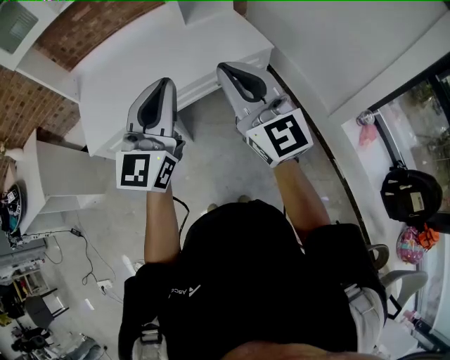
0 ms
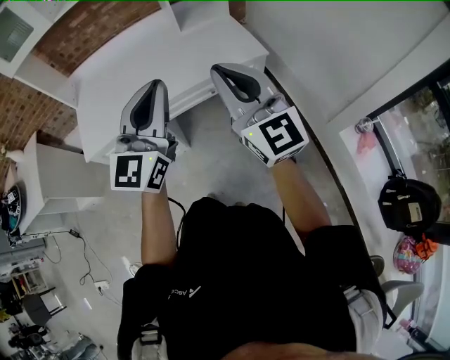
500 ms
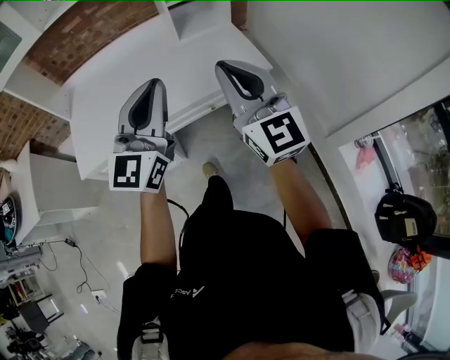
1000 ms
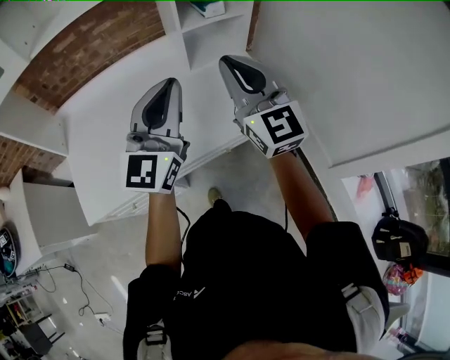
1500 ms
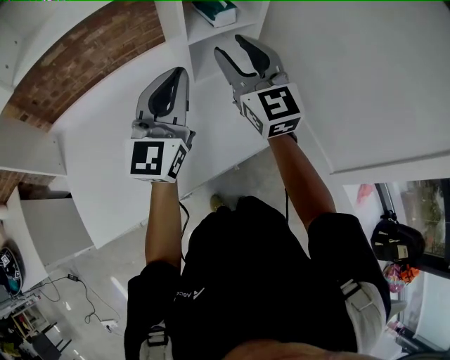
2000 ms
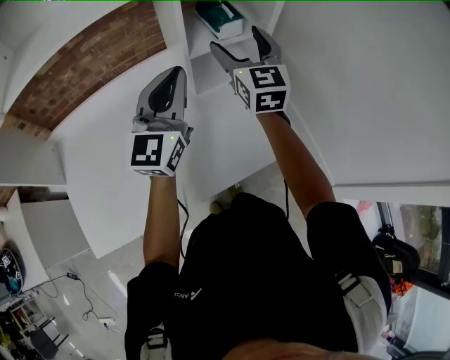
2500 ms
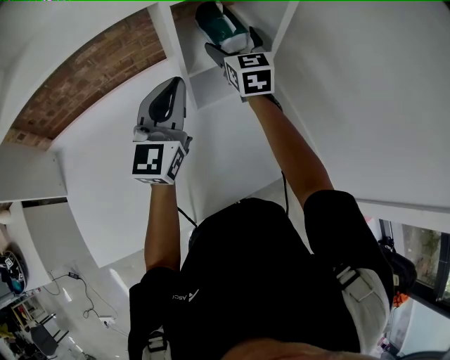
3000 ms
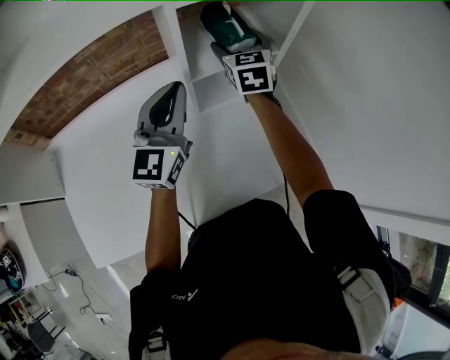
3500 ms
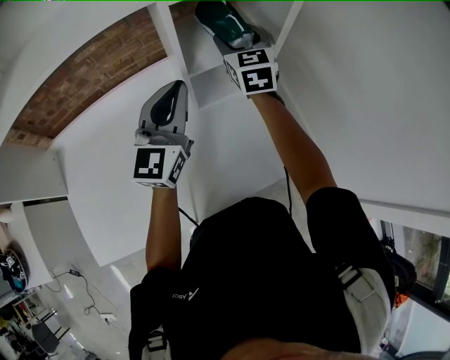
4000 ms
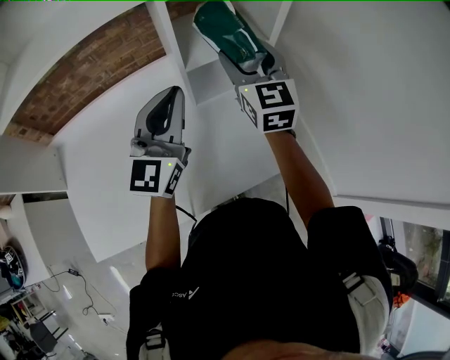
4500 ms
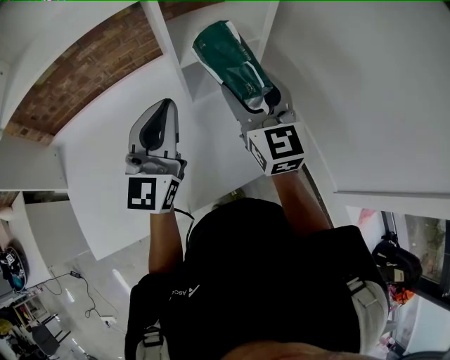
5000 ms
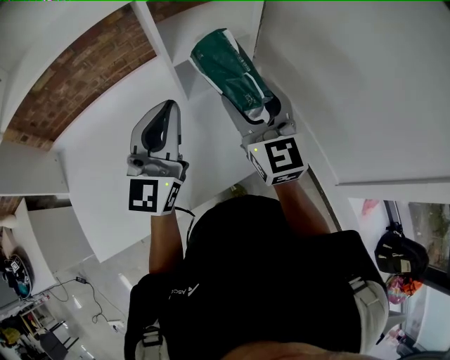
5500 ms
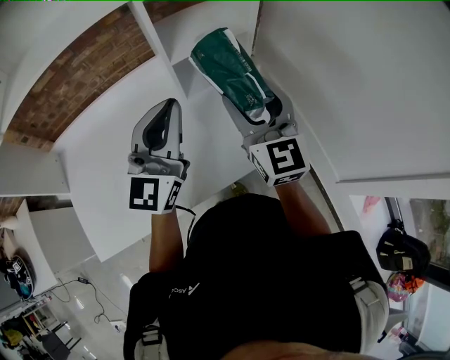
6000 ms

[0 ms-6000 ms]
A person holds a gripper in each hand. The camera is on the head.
0 ms to 2000 ms: The pair of grippers is taken forward, roughly 50 cm. The right gripper opens.
2000 ms to 4000 ms: The left gripper shifts about 15 cm forward. Meanwhile the right gripper is displaced forward by roughly 30 cm, and opens, then closes once more.
4000 ms to 6000 ms: The left gripper goes some 15 cm backward. The right gripper heads backward, covering roughly 30 cm.

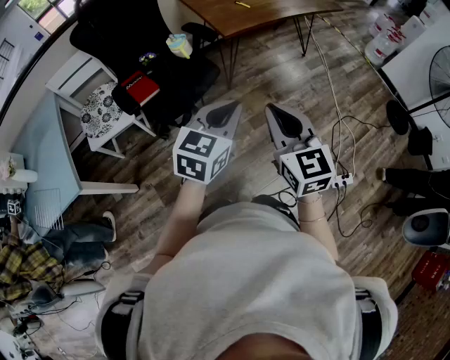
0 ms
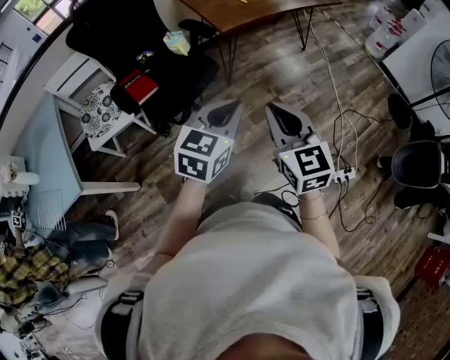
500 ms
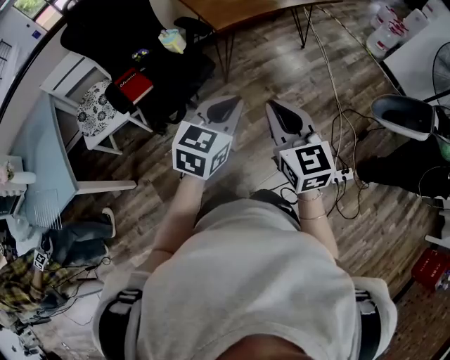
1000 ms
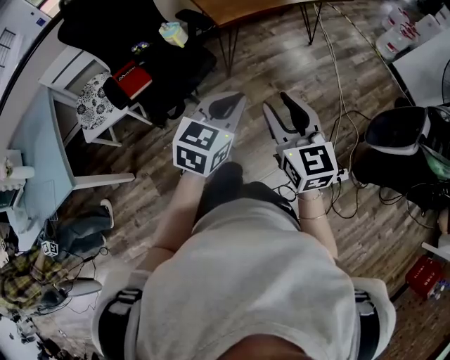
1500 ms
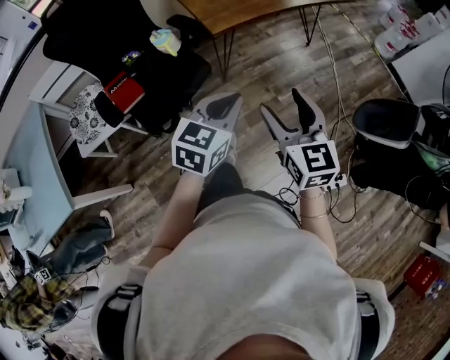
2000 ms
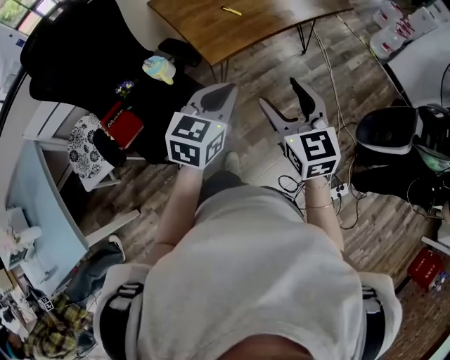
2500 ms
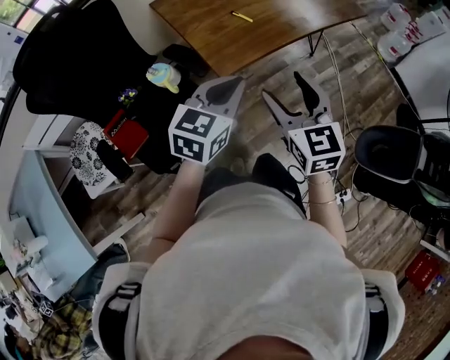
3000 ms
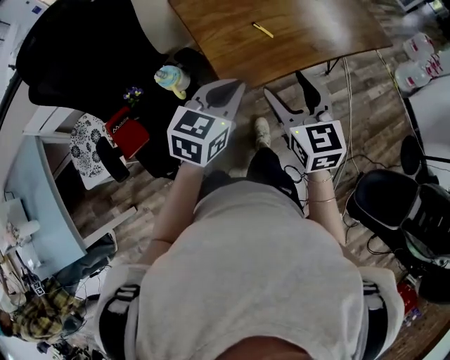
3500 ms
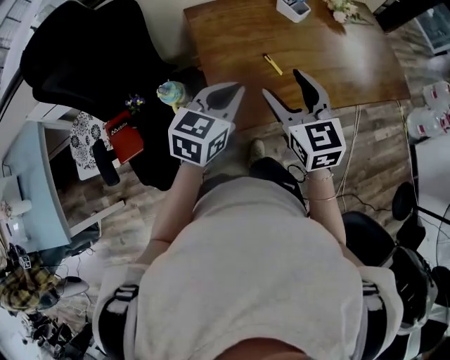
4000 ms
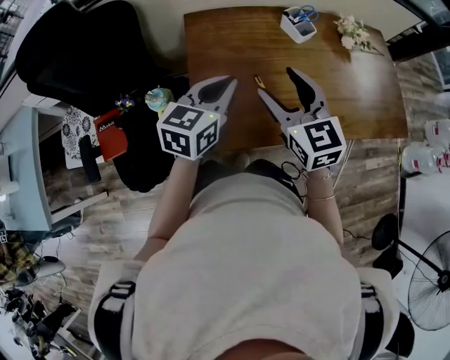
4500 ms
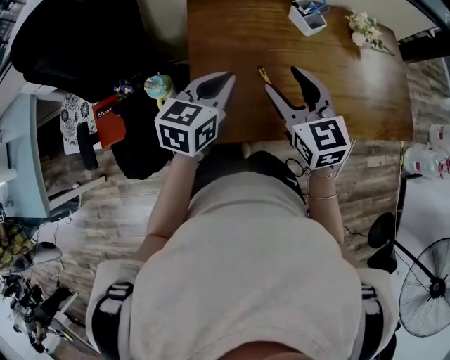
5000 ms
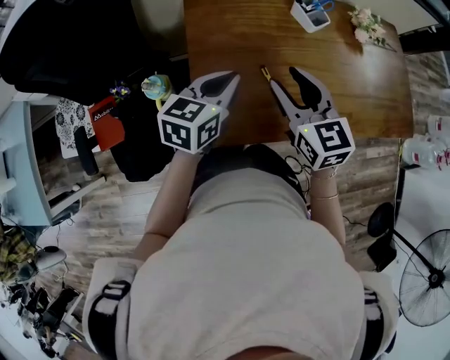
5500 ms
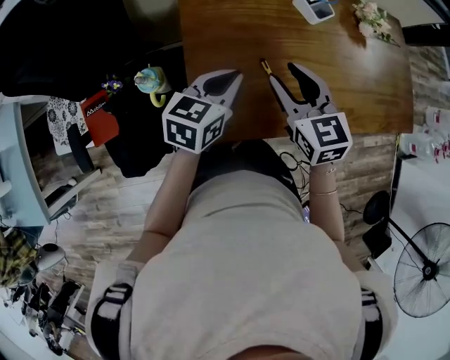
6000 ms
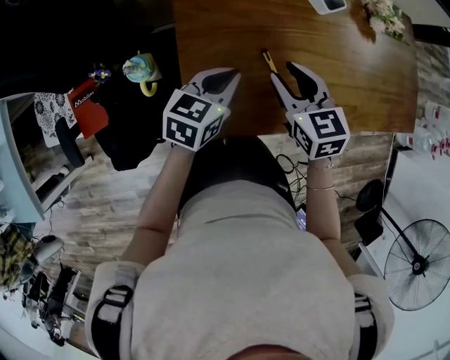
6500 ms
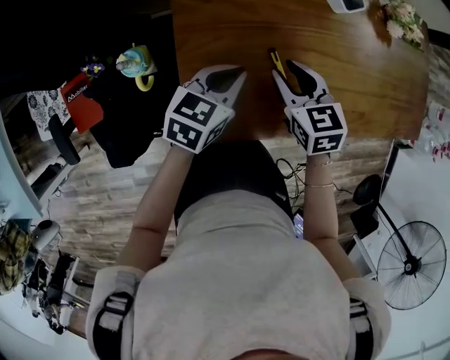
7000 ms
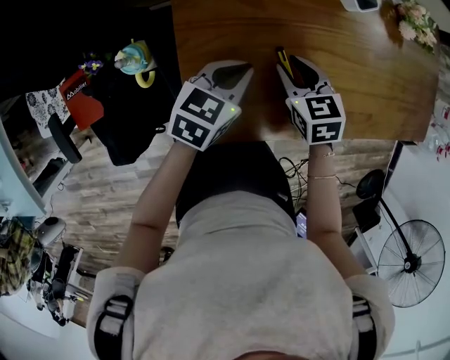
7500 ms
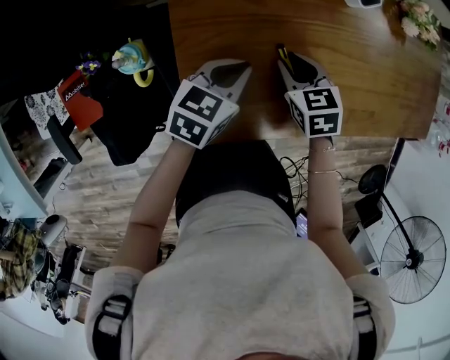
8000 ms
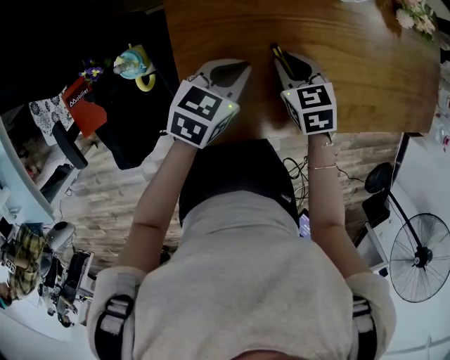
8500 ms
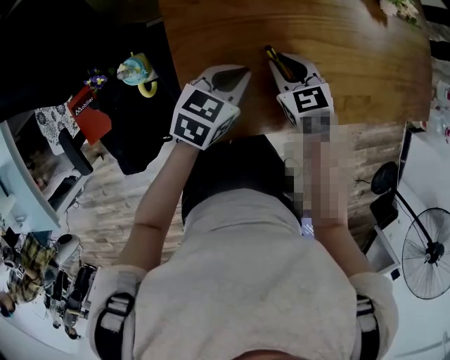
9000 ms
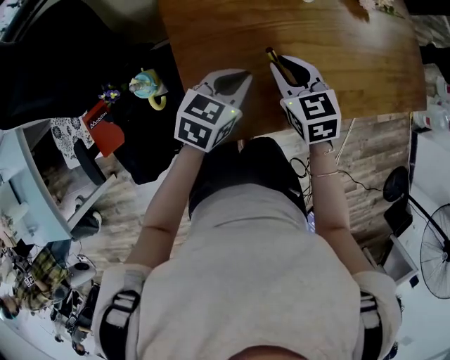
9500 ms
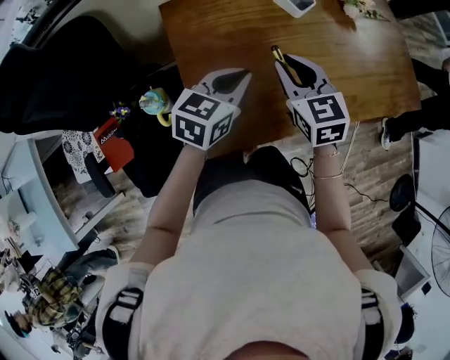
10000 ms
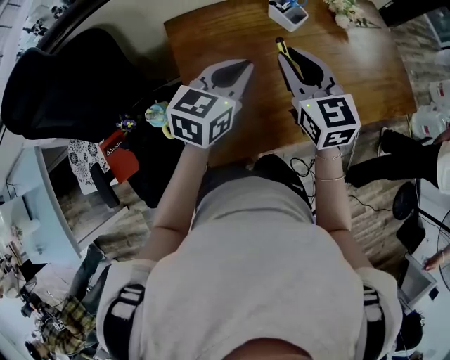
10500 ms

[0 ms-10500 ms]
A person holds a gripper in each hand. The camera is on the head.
0 ms to 2000 ms: Both grippers move forward, about 15 cm. The right gripper opens its fingers.
2000 ms to 4000 ms: The two grippers travel together, forward, roughly 50 cm.
4000 ms to 6500 ms: The grippers both shift forward and downward by some 20 cm. The right gripper changes its angle by roughly 20 degrees, and closes its fingers.
6500 ms to 8500 ms: The right gripper goes roughly 15 cm downward. The left gripper goes roughly 5 cm downward.
8500 ms to 10500 ms: Both grippers move upward, roughly 25 cm. The left gripper swivels approximately 20 degrees; the right gripper tips its fingers upward by about 40 degrees.

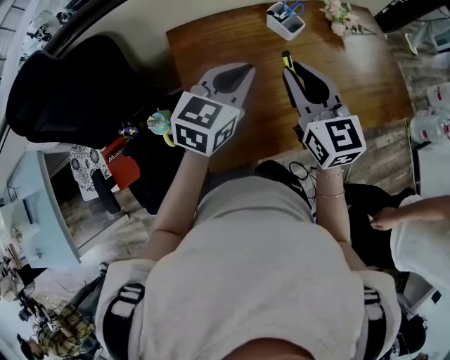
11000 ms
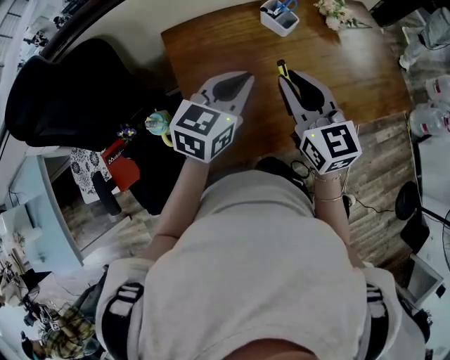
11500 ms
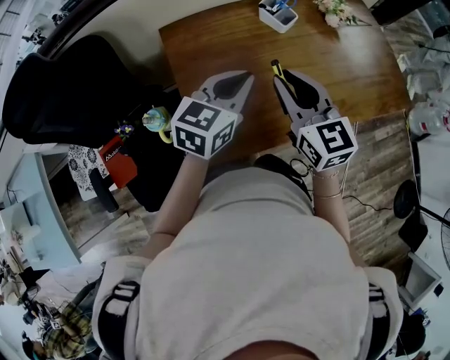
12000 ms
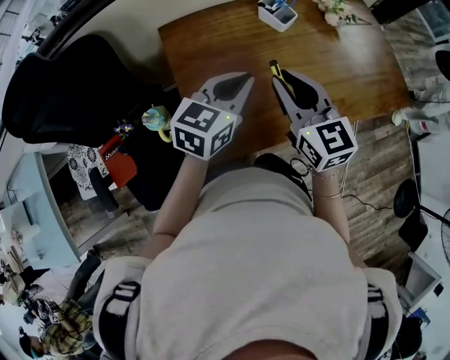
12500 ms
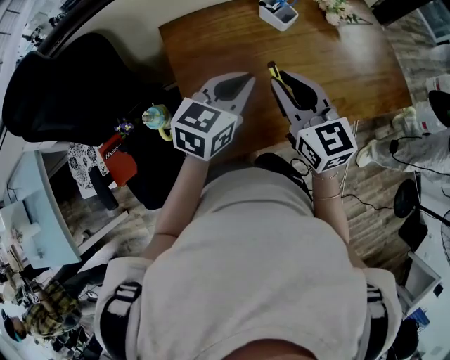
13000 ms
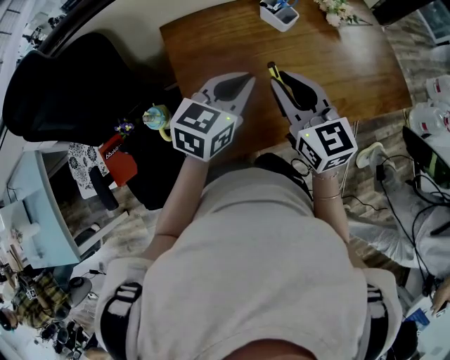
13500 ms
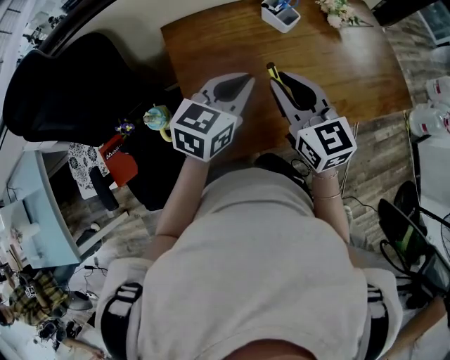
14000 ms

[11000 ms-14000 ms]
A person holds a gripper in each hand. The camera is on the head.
11000 ms to 12500 ms: The grippers stay close to where they were, moving slightly.
12500 ms to 14000 ms: Both grippers stay about where they are.

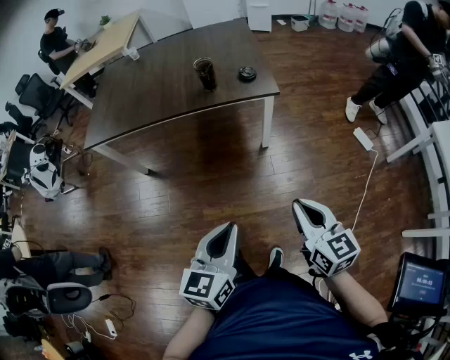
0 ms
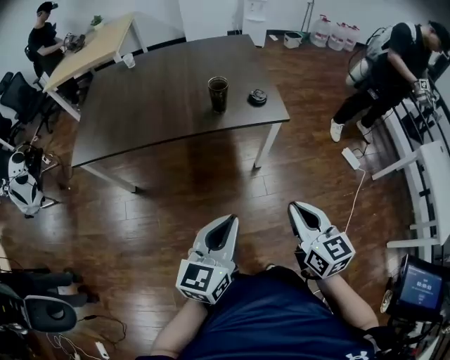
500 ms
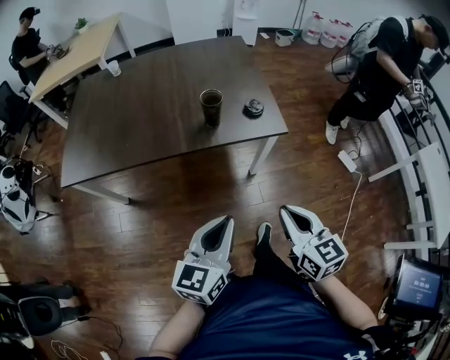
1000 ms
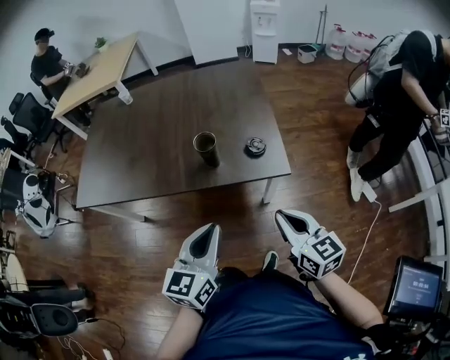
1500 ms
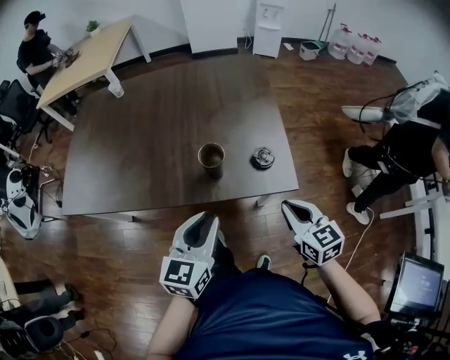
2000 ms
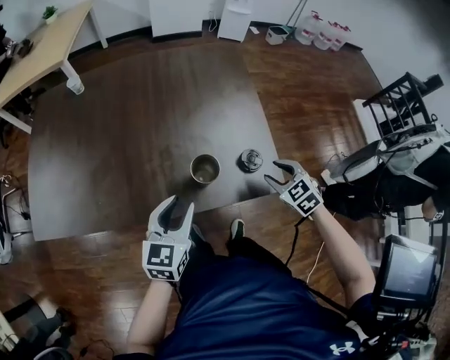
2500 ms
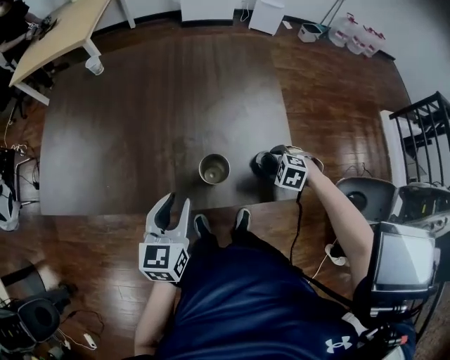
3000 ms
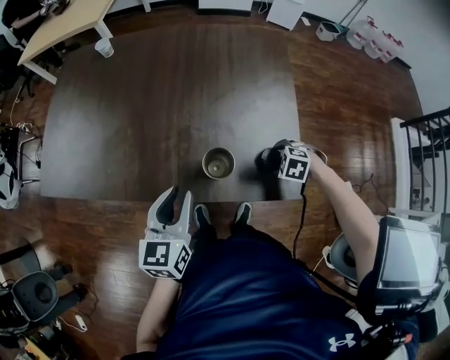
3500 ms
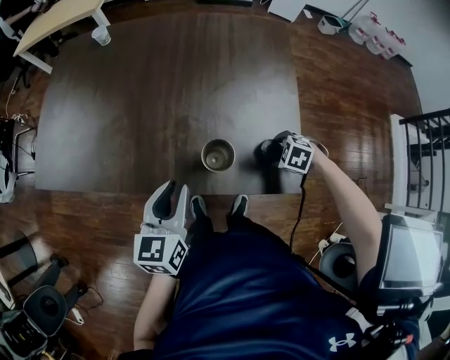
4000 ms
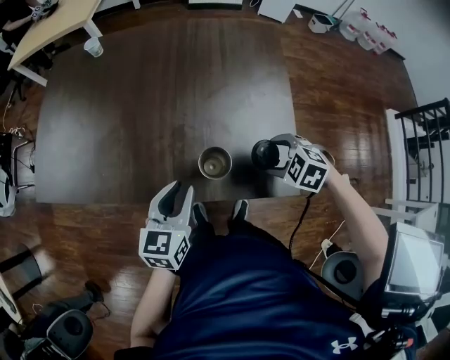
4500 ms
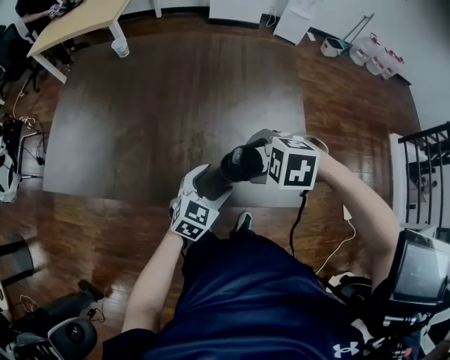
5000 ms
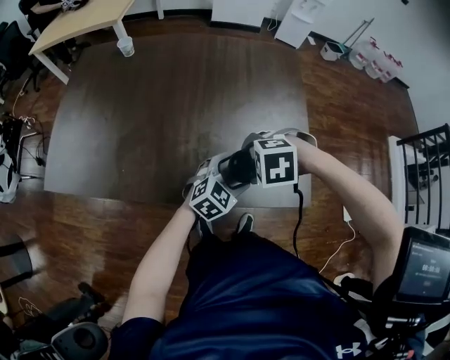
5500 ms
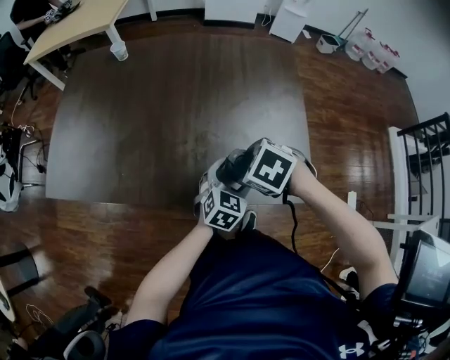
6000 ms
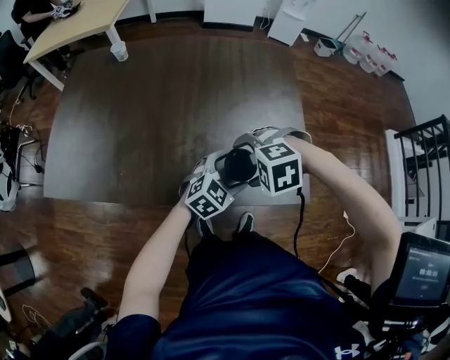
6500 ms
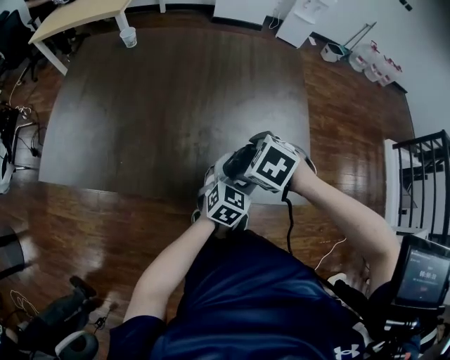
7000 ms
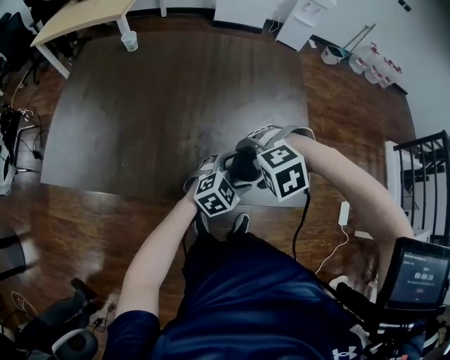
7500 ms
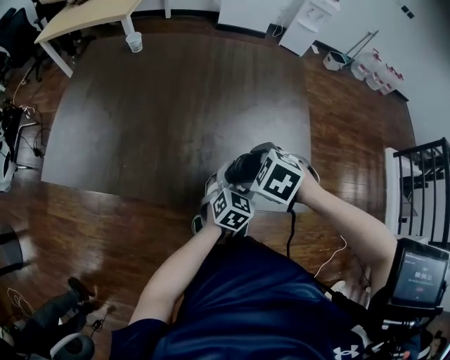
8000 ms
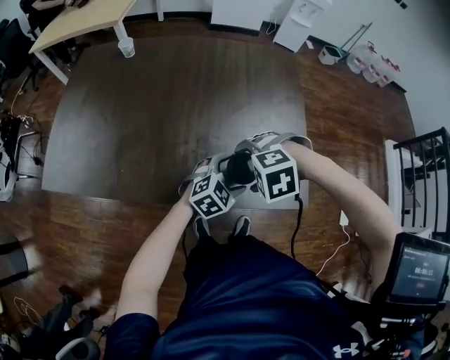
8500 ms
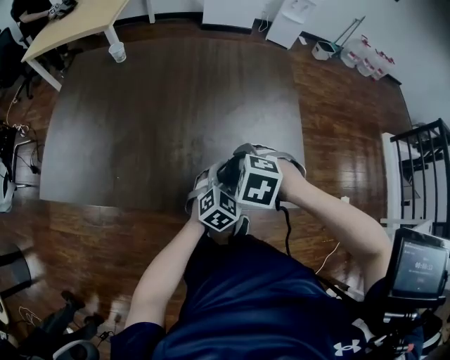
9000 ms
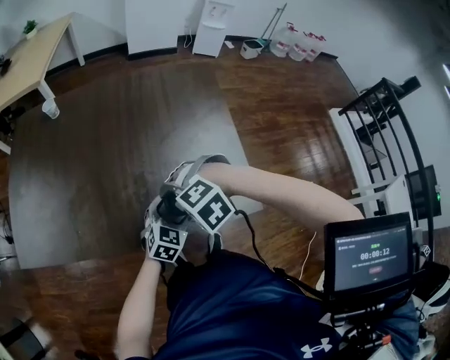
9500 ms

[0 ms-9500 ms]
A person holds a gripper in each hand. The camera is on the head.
0 ms to 2000 ms: Both grippers are carried forward, approximately 40 cm.
2000 ms to 4000 ms: The right gripper moves downward, about 20 cm, tips its fingers downward by some 50 degrees, and opens; the left gripper moves about 15 cm.
4000 ms to 5500 ms: The left gripper shifts by roughly 15 cm, swivels approximately 50 degrees, and opens its fingers, while the right gripper shifts by roughly 25 cm, and changes its angle by some 30 degrees.
5500 ms to 7500 ms: The right gripper rotates about 20 degrees.
